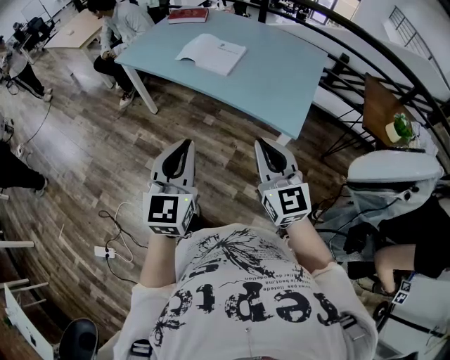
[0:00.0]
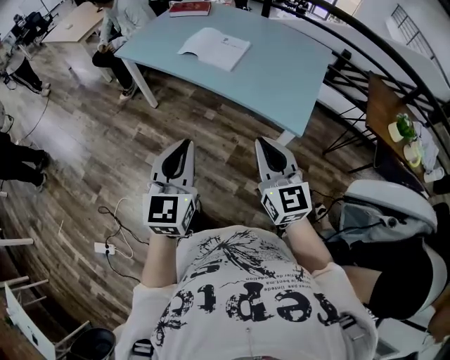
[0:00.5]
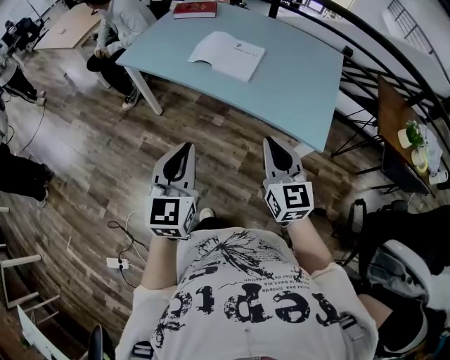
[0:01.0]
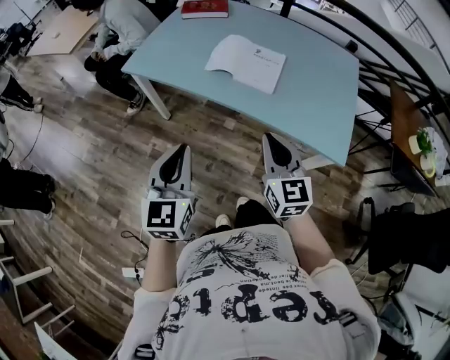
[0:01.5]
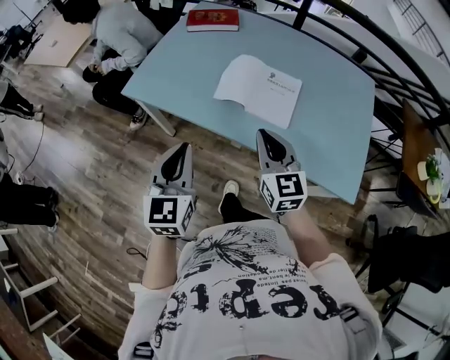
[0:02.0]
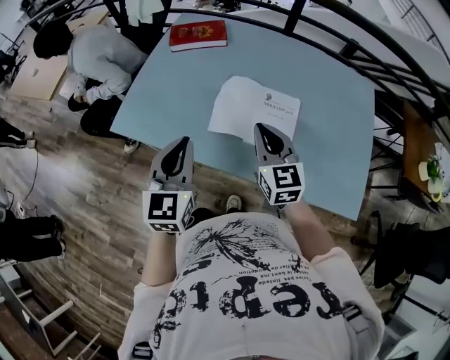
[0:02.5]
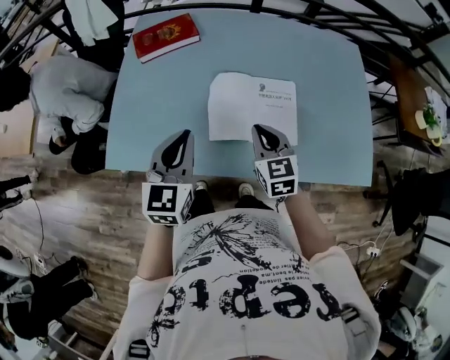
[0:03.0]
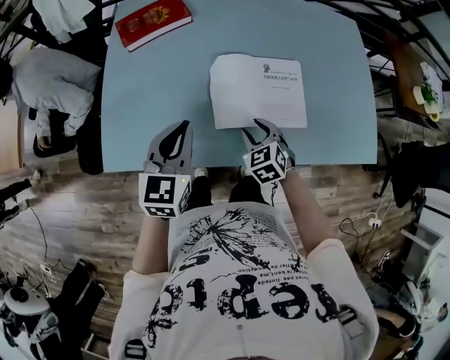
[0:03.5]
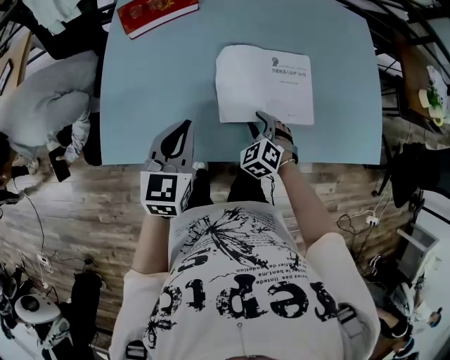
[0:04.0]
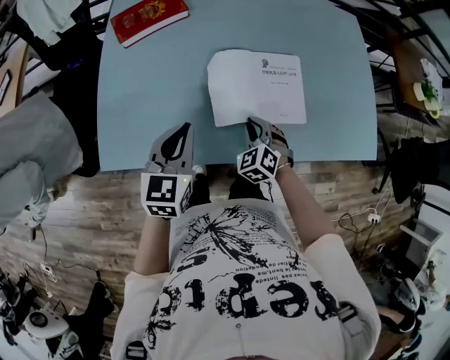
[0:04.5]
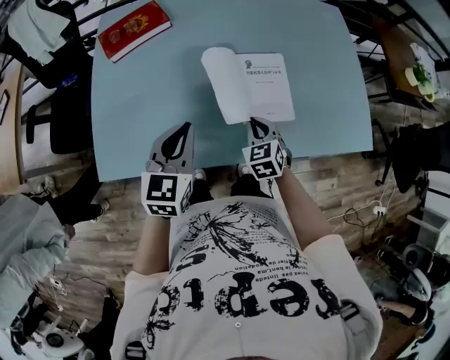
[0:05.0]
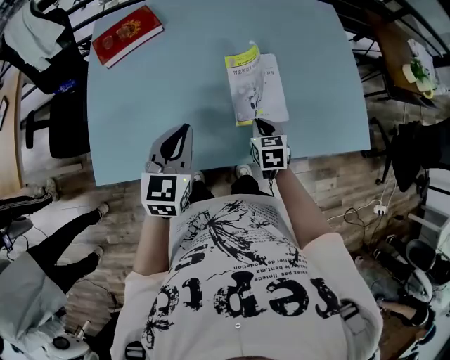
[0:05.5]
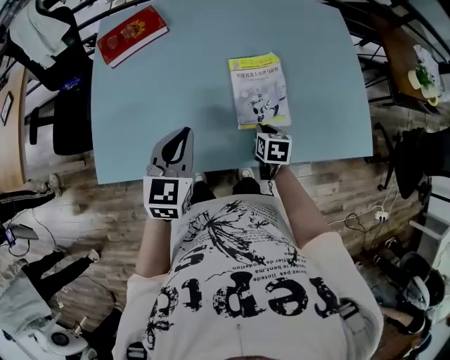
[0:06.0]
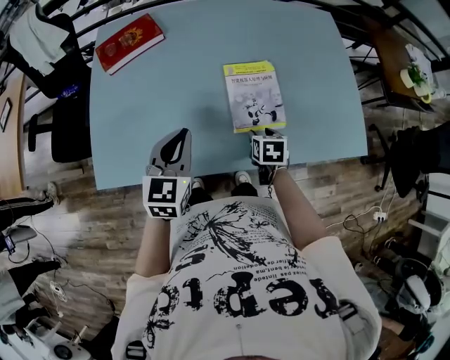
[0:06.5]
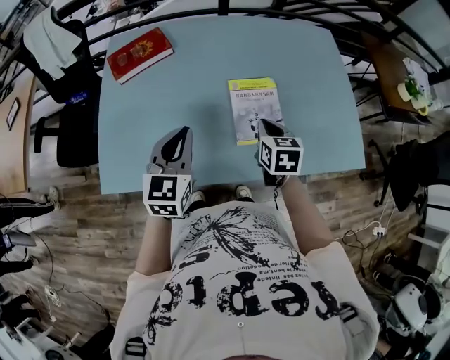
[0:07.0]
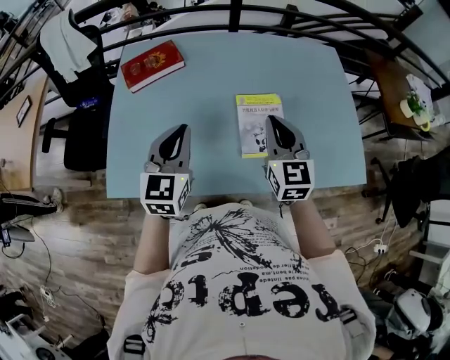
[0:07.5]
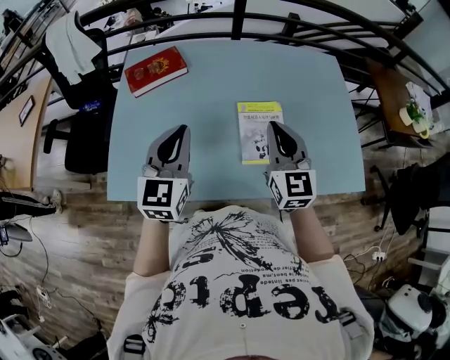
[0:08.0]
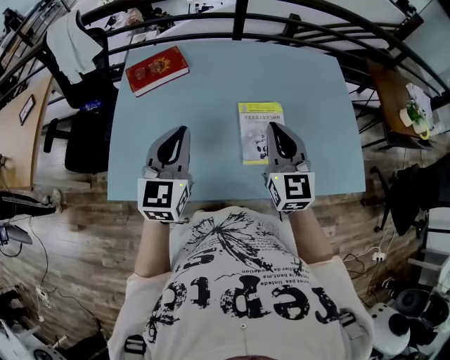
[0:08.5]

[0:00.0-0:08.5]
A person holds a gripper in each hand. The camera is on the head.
0:00.0 to 0:02.0: The pair of grippers is taken forward and to the left, some 50 cm.
0:02.0 to 0:04.0: The left gripper ends up some 35 cm from where it was, and swivels some 30 degrees; the right gripper changes place by about 35 cm, points its fingers some 40 degrees further downward, and opens.
0:04.0 to 0:06.5: The right gripper heads to the right, covering some 15 cm, twists approximately 60 degrees clockwise, seen from behind, and closes, then opens again. Meanwhile the left gripper moves to the right, approximately 10 cm.
0:06.5 to 0:08.5: The right gripper travels upward by roughly 30 cm, tilts its fingers approximately 50 degrees upward, and closes its fingers, while the left gripper is displaced upward by approximately 10 cm.

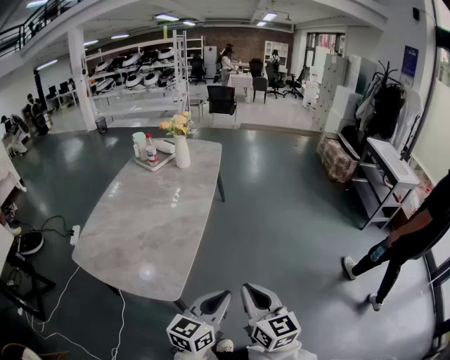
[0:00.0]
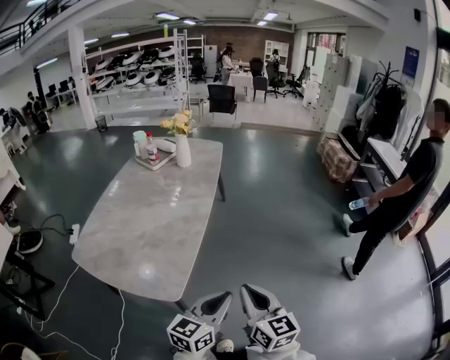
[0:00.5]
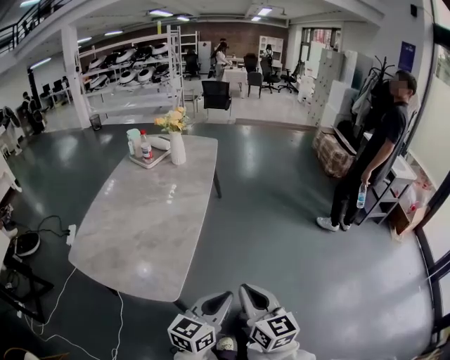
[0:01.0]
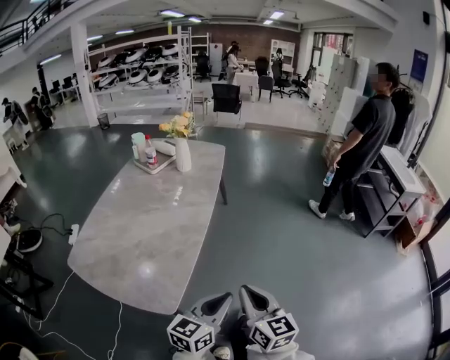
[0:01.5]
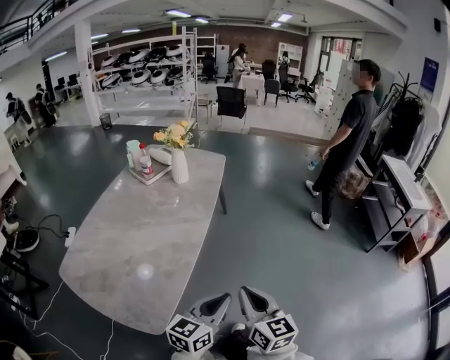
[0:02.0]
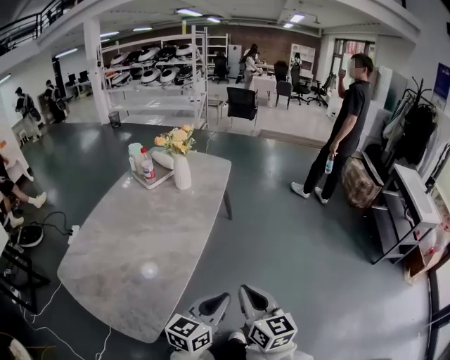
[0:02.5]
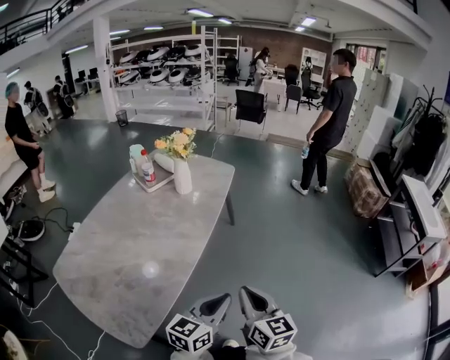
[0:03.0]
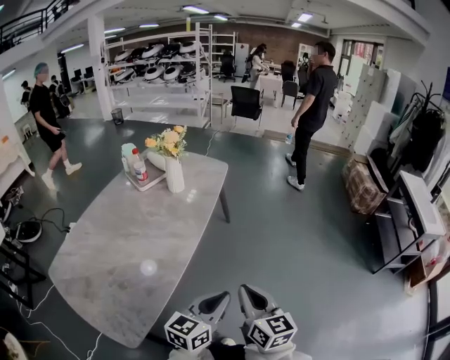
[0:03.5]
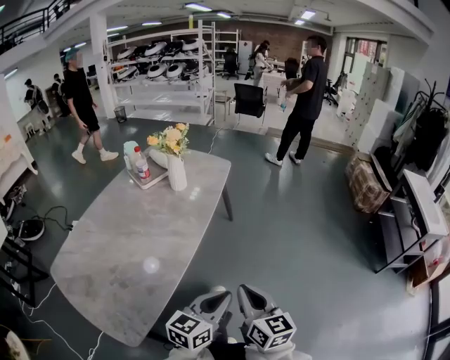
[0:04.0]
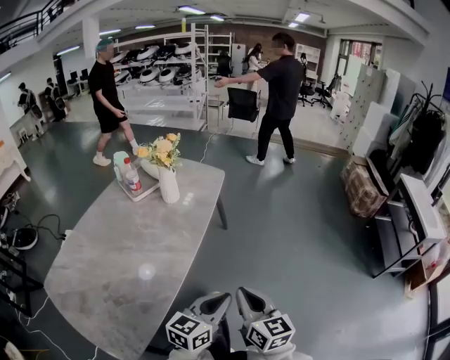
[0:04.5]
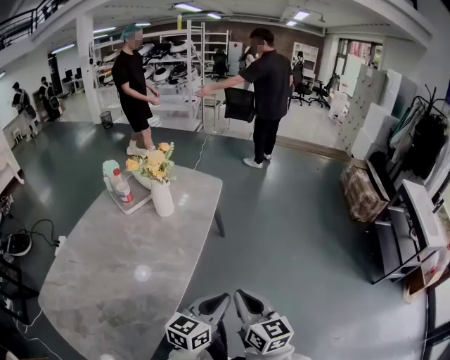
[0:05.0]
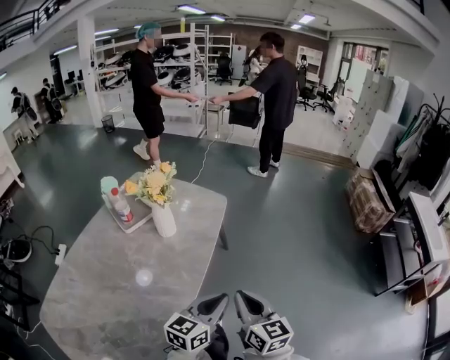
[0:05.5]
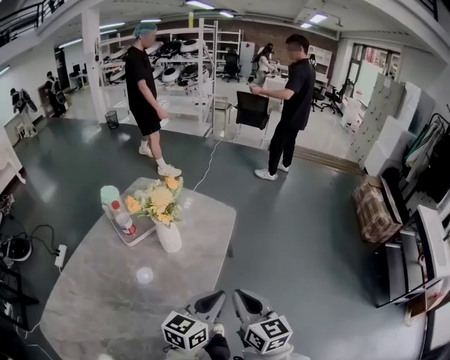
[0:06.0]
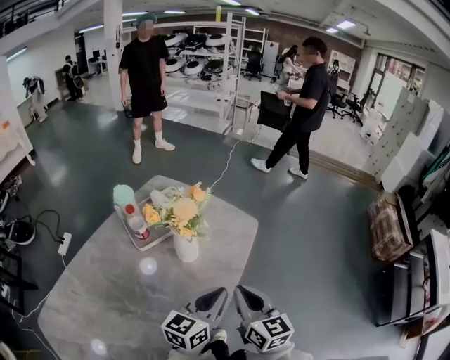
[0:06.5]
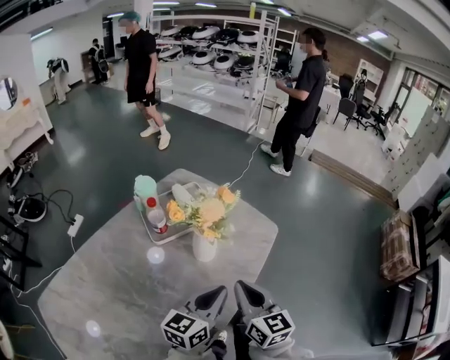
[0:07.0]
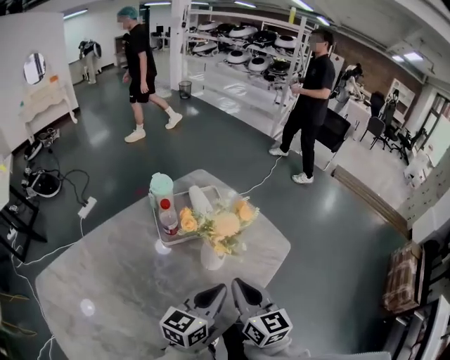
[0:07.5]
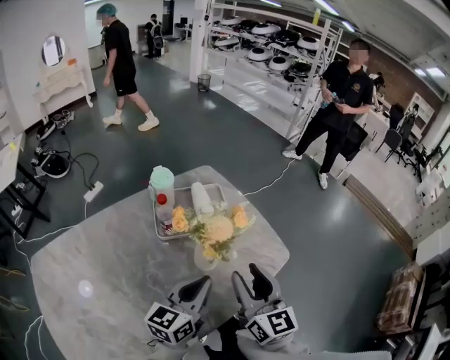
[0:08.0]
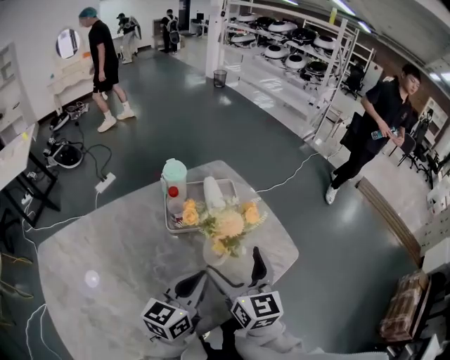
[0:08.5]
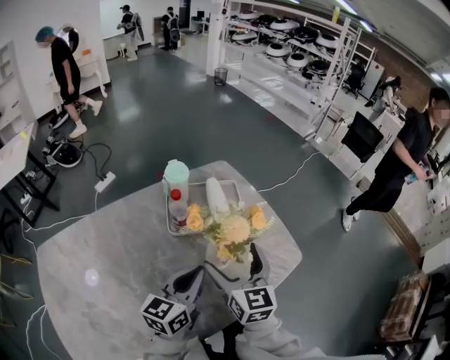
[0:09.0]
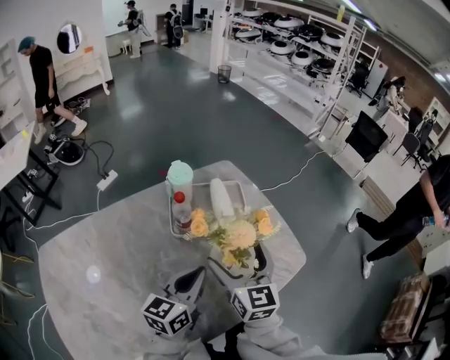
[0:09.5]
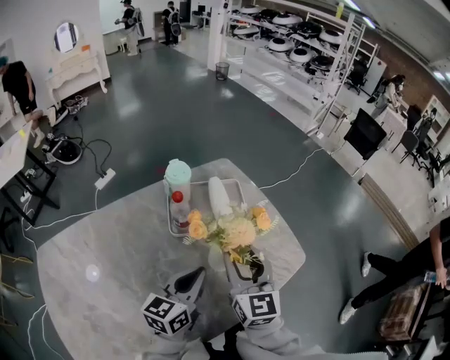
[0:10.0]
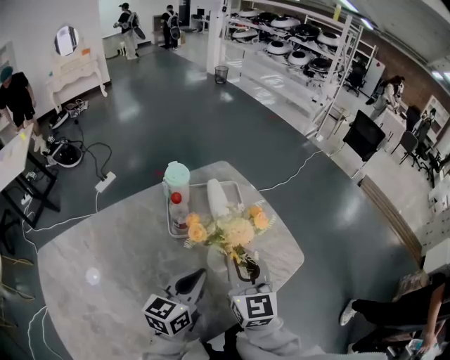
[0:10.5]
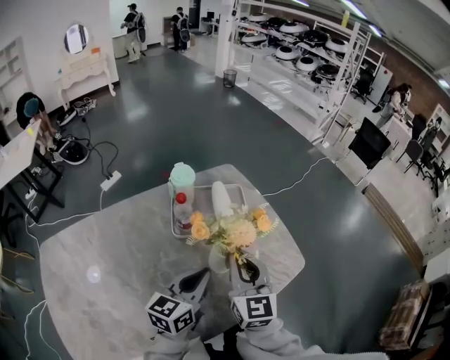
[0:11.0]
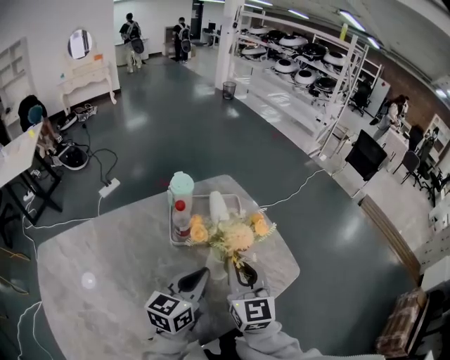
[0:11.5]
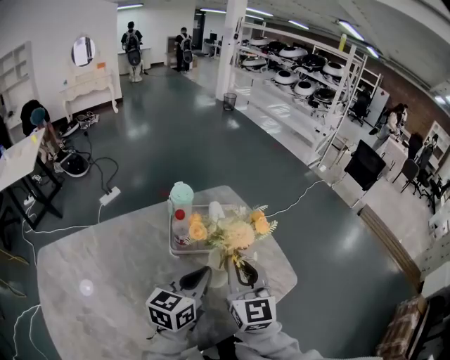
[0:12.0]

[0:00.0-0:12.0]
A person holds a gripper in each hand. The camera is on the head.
0:00.0 to 0:02.0: The grippers both shift forward by approximately 20 cm.
0:02.0 to 0:04.0: The two grippers go roughly 15 cm forward and to the right.
0:04.0 to 0:06.0: The grippers both shift forward by approximately 40 cm.
0:06.0 to 0:08.0: The left gripper moves some 25 cm, and swivels approximately 40 degrees, while the right gripper shifts by some 30 cm, and turns by some 30 degrees.
0:08.0 to 0:10.0: The right gripper is displaced forward and to the left by roughly 10 cm, and opens and closes again; the left gripper travels to the left by about 5 cm.
0:10.0 to 0:12.0: Both grippers move upward, roughly 5 cm.

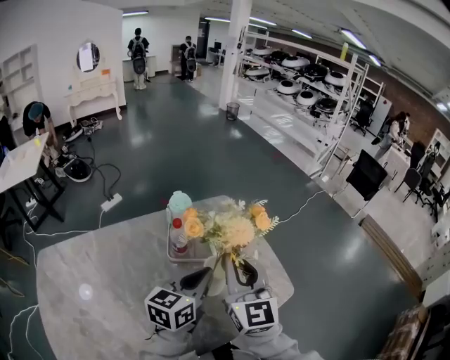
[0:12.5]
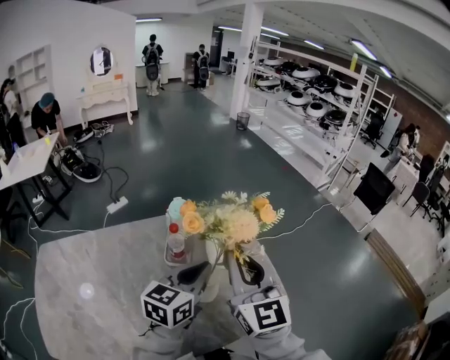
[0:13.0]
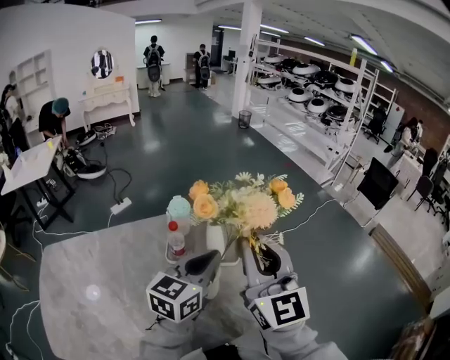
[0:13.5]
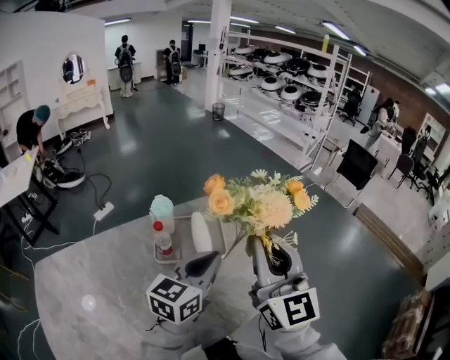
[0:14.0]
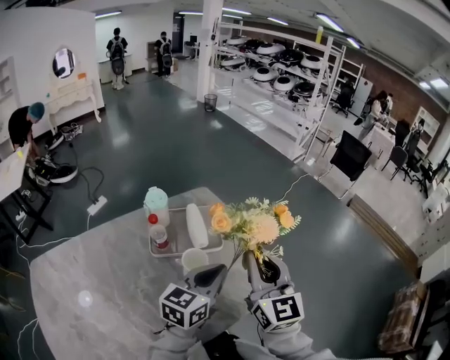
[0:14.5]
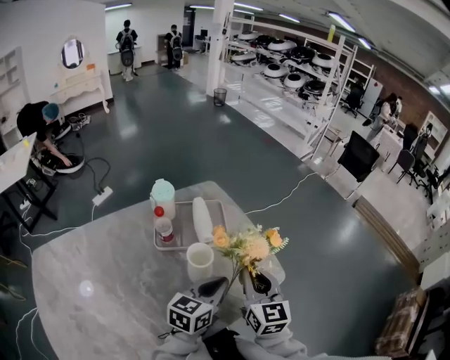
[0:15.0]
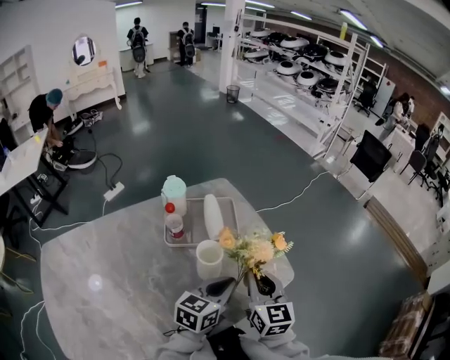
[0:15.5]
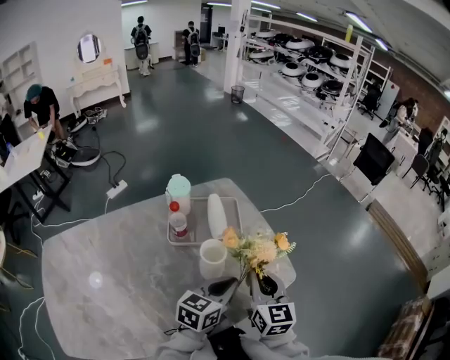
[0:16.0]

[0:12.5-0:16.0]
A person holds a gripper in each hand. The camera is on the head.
0:12.5 to 0:14.5: Both grippers travel together to the right, about 10 cm.
0:14.5 to 0:16.0: The right gripper goes approximately 15 cm downward. The left gripper goes some 10 cm downward.

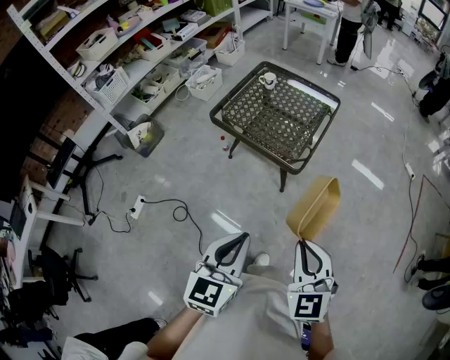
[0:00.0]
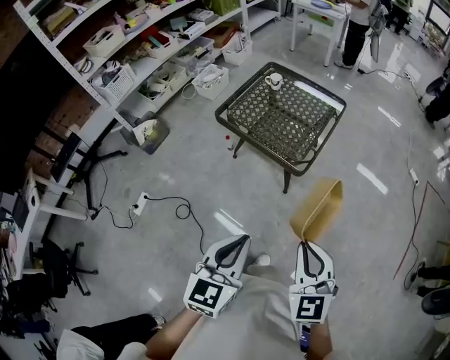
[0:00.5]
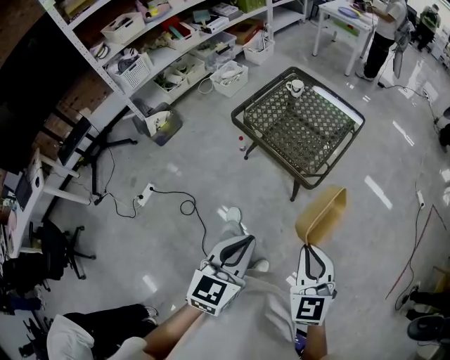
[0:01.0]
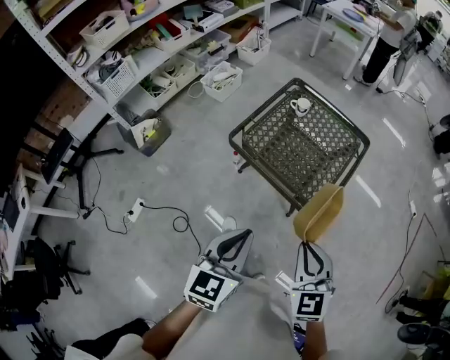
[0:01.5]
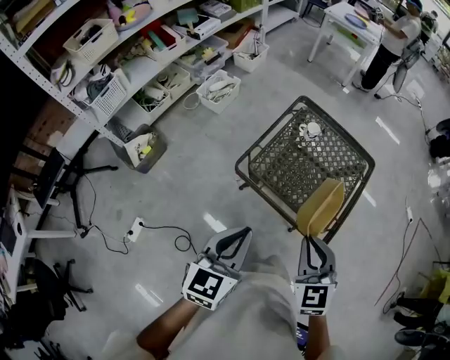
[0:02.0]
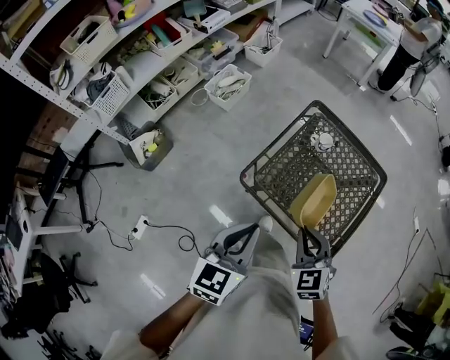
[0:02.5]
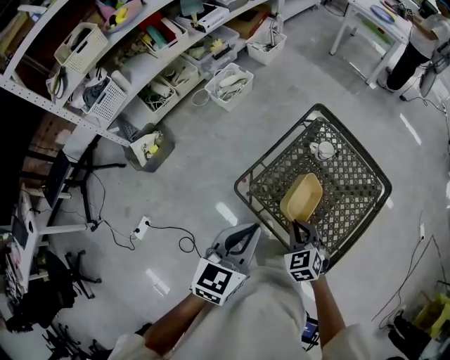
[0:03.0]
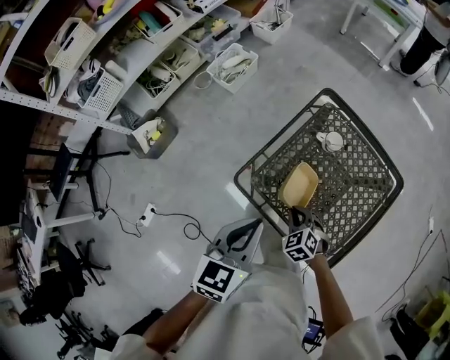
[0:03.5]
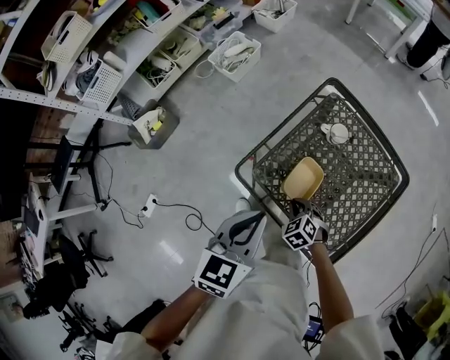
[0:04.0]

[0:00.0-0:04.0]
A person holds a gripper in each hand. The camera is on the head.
0:00.0 to 0:02.0: The pair of grippers is taken forward and to the left, some 40 cm.
0:02.0 to 0:04.0: The right gripper moves downward and forward, about 40 cm, and points its fingers some 40 degrees further downward; the left gripper heads forward and downward, covering approximately 20 cm.
